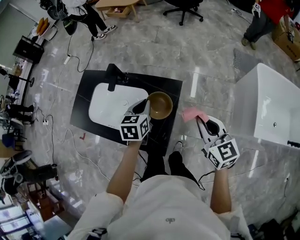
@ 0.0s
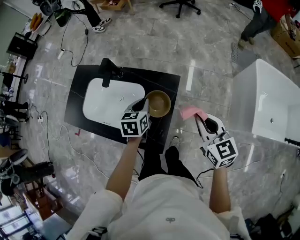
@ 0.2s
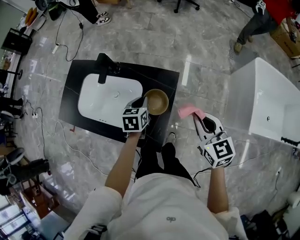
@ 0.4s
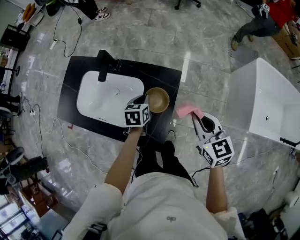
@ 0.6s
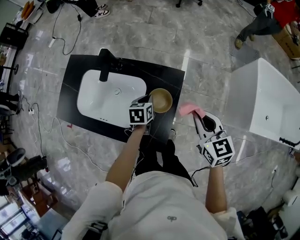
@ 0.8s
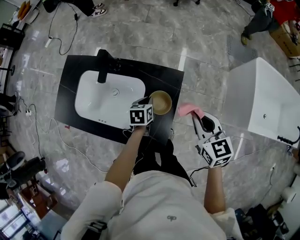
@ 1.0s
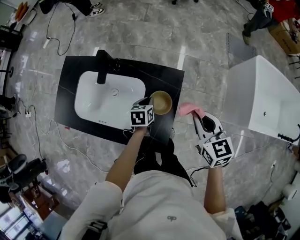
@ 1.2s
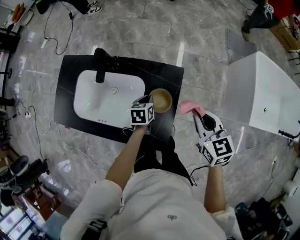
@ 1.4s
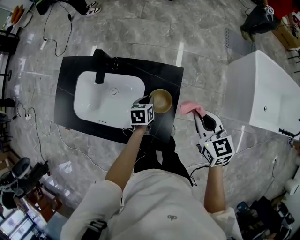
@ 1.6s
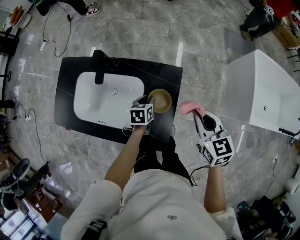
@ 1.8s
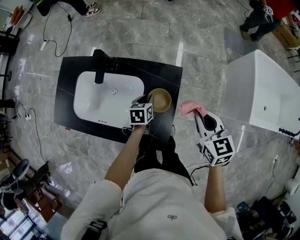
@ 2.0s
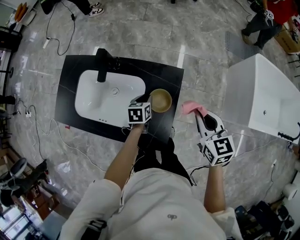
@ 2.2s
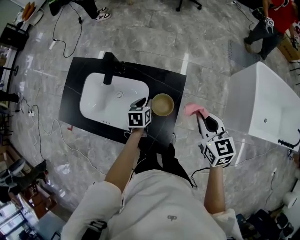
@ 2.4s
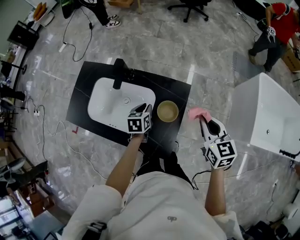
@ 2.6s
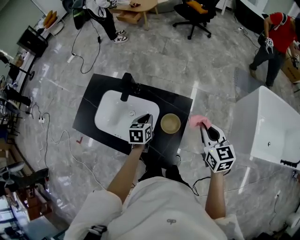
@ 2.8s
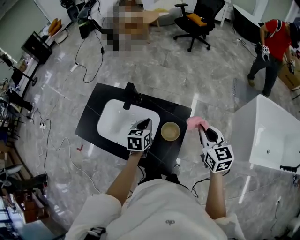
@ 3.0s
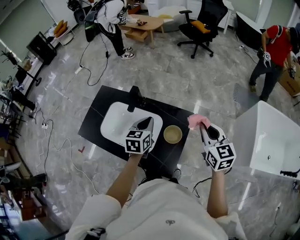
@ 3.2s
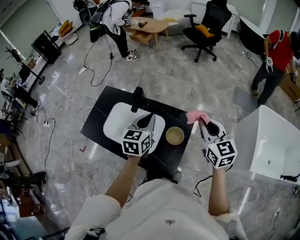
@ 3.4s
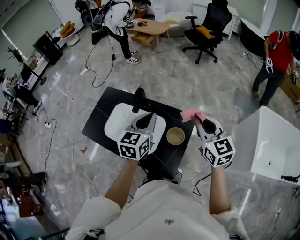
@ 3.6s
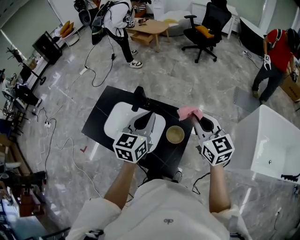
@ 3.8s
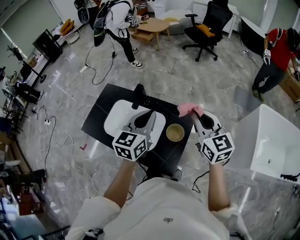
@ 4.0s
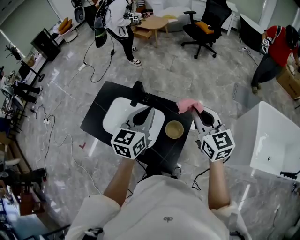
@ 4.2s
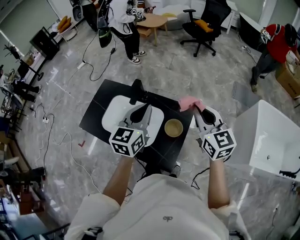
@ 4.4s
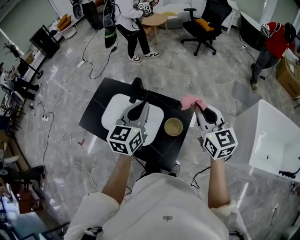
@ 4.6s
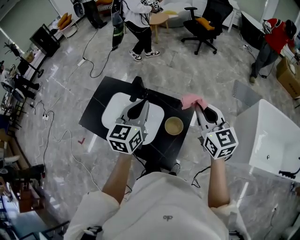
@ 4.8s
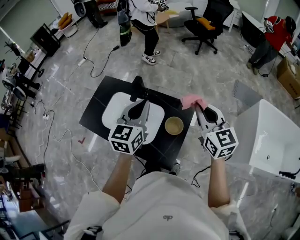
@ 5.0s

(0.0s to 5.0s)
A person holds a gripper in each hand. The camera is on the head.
0.0s - 1.6s: The right gripper heads downward and to the left, covering roughly 10 cm; the left gripper shifts some 20 cm downward, and rotates approximately 20 degrees.
1.6s - 3.4s: The left gripper shifts some 30 cm upward, and swivels some 30 degrees; the right gripper travels upward by approximately 15 cm, and changes its angle by some 20 degrees.
3.4s - 5.0s: The left gripper travels upward by approximately 5 cm.

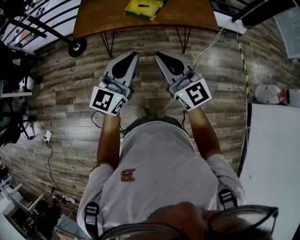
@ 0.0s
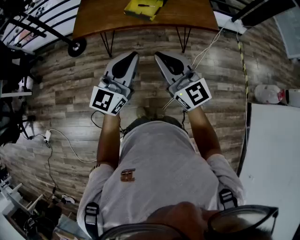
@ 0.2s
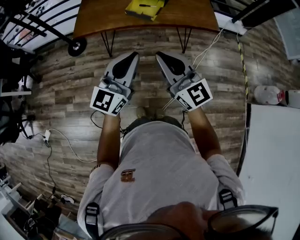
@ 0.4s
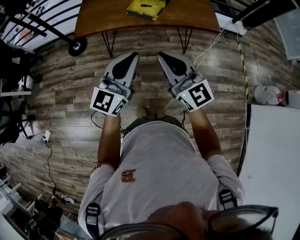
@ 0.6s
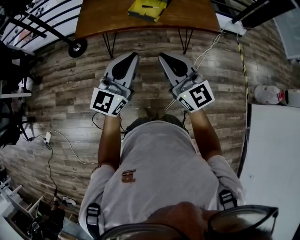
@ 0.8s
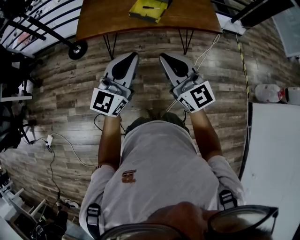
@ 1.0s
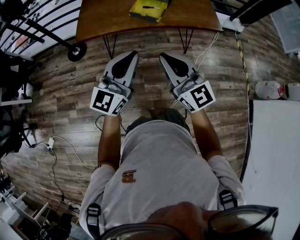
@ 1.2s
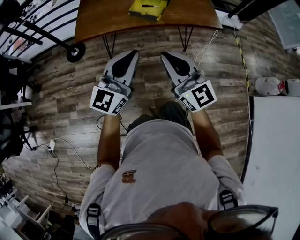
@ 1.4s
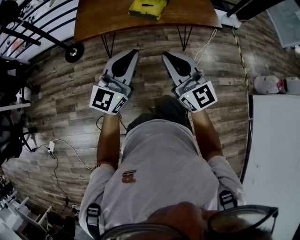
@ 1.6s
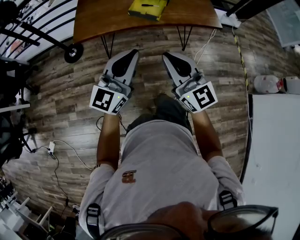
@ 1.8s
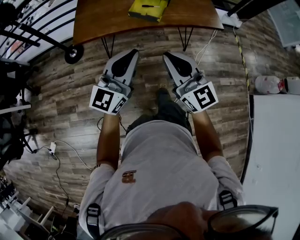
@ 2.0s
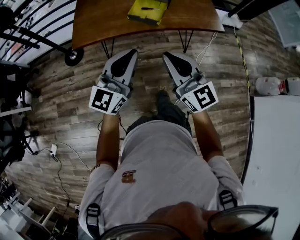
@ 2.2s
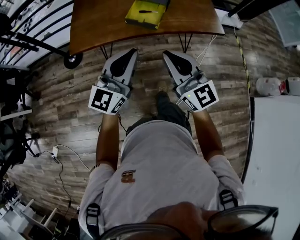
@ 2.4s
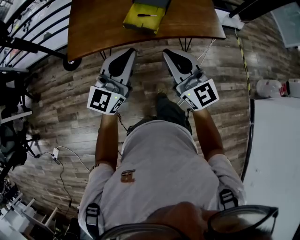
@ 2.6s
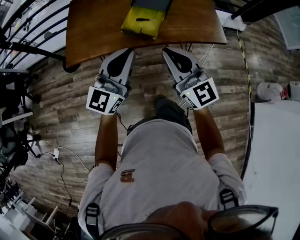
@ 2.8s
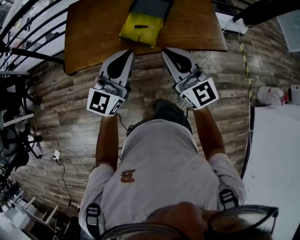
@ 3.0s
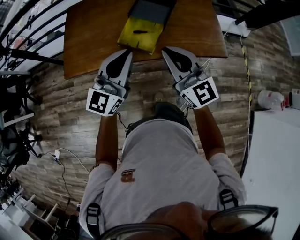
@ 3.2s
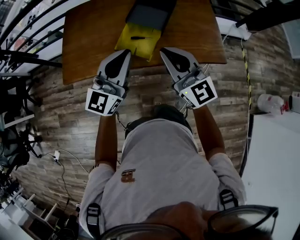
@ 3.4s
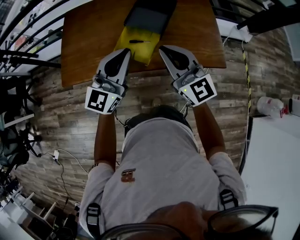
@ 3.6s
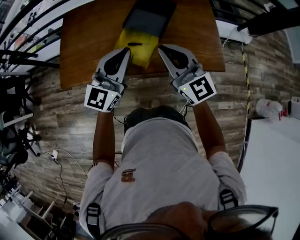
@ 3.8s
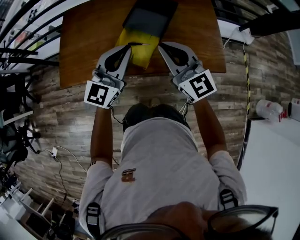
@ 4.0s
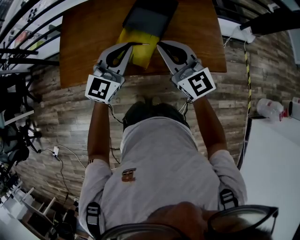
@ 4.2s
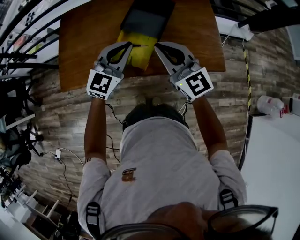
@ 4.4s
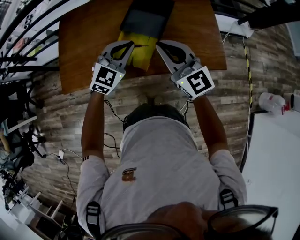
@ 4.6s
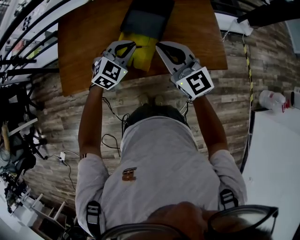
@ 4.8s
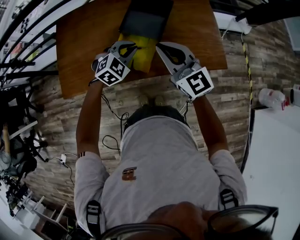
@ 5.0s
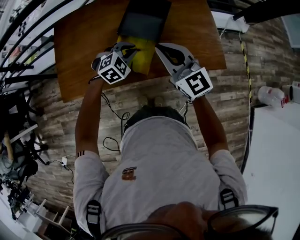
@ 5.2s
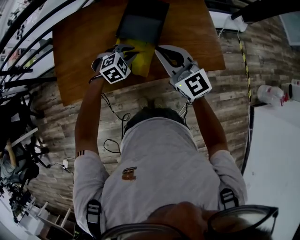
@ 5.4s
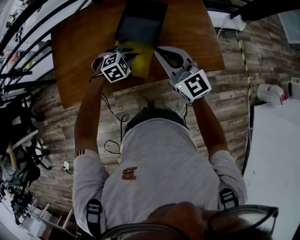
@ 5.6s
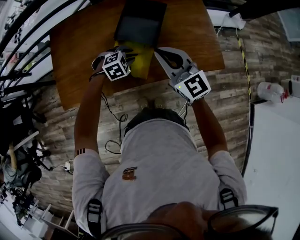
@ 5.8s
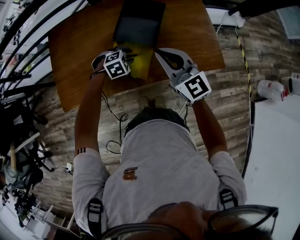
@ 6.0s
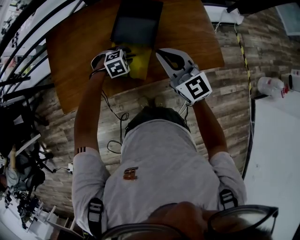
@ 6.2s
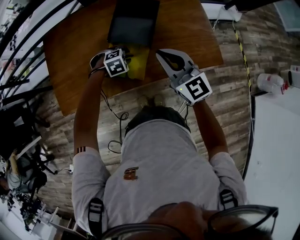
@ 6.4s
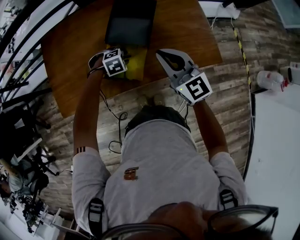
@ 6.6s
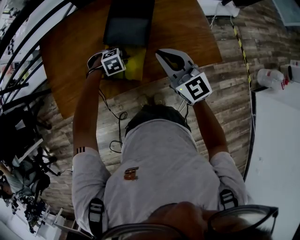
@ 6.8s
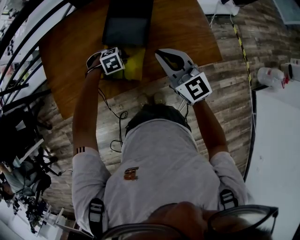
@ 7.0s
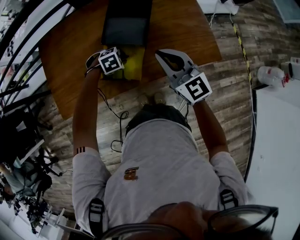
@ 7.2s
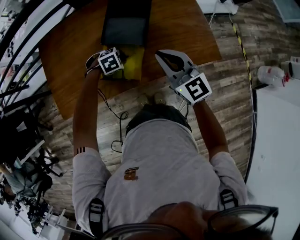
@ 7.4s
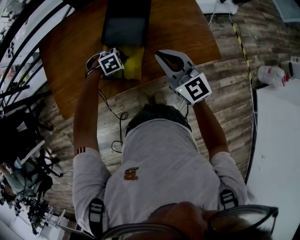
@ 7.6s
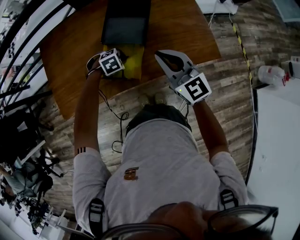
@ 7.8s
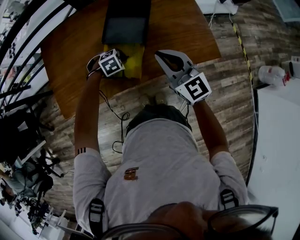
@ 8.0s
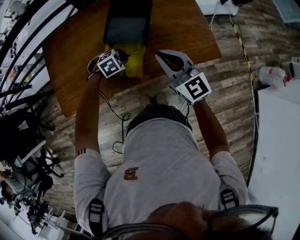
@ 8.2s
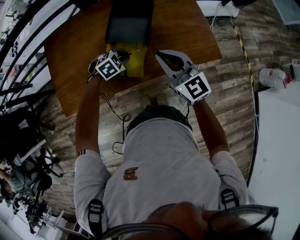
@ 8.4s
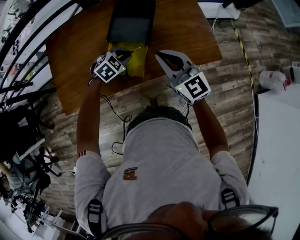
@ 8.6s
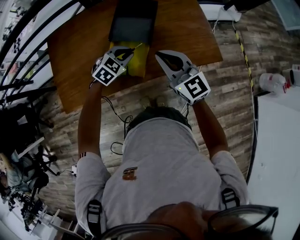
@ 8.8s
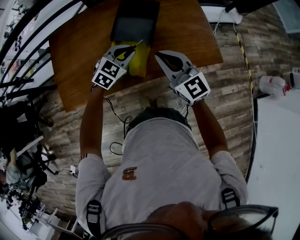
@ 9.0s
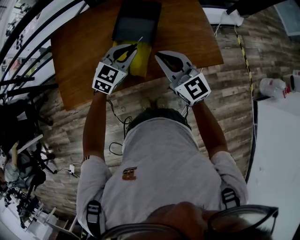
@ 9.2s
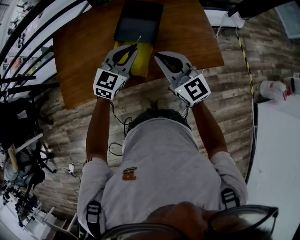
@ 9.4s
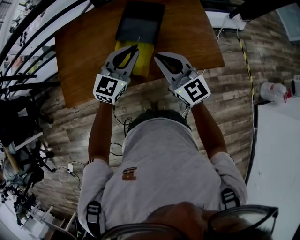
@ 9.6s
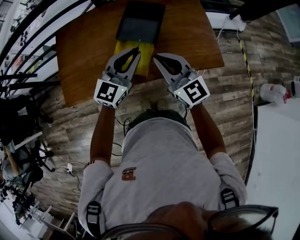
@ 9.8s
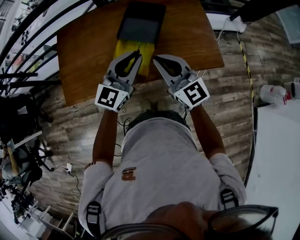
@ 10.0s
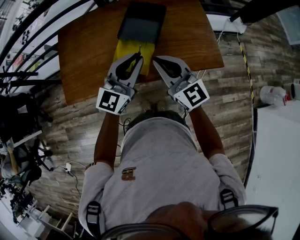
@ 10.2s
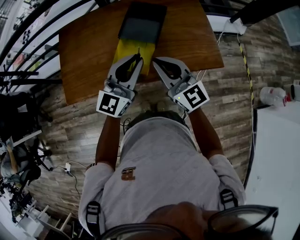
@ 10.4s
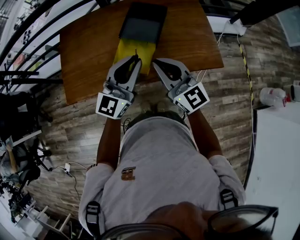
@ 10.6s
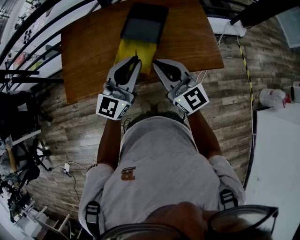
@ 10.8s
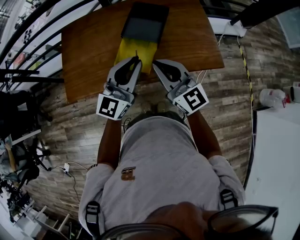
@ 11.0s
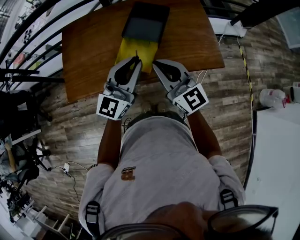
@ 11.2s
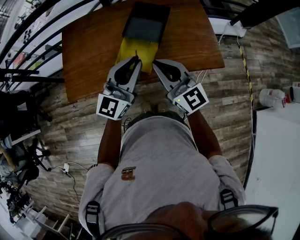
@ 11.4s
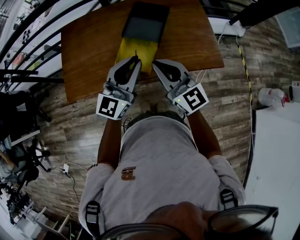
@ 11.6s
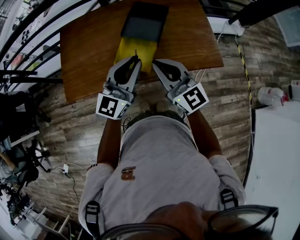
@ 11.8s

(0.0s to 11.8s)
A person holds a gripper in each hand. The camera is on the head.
0.0s - 1.4s: Both grippers move to the left, some 10 cm.
1.4s - 3.0s: The two grippers go approximately 30 cm forward.
3.0s - 4.4s: The grippers both shift forward by roughly 20 cm. The left gripper rotates approximately 30 degrees.
4.4s - 6.0s: The left gripper moves downward, some 20 cm, angles its fingers downward, by some 60 degrees, and opens its fingers. Meanwhile the right gripper goes approximately 5 cm forward.
6.0s - 7.4s: The grippers stay close to where they were, moving slightly.
7.4s - 8.8s: The left gripper shifts roughly 10 cm upward, and swivels approximately 30 degrees.
8.8s - 10.4s: The right gripper moves backward and upward, about 10 cm; the left gripper shifts roughly 25 cm upward and backward, and points its fingers roughly 50 degrees further upward.
10.4s - 11.8s: There are only small adjustments of the grippers.

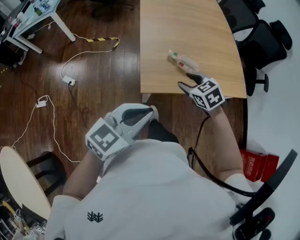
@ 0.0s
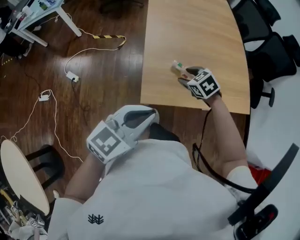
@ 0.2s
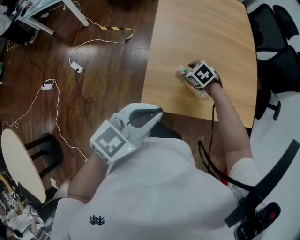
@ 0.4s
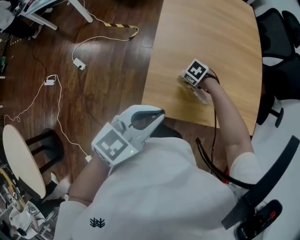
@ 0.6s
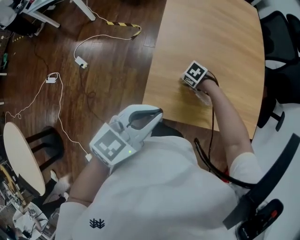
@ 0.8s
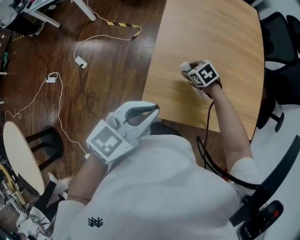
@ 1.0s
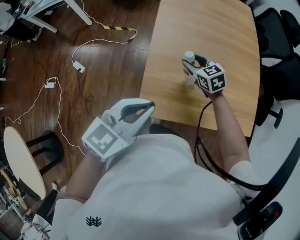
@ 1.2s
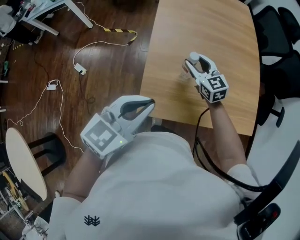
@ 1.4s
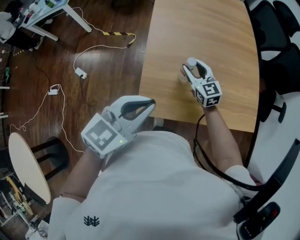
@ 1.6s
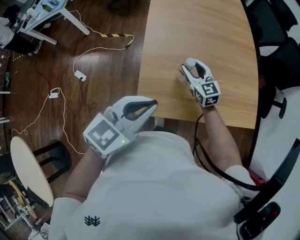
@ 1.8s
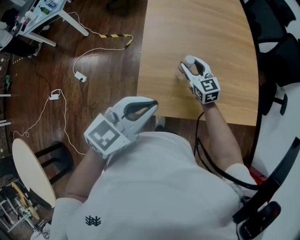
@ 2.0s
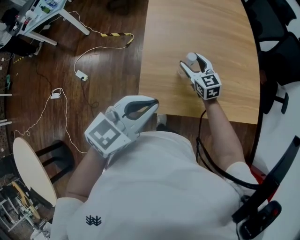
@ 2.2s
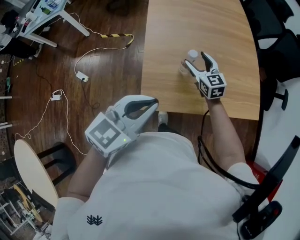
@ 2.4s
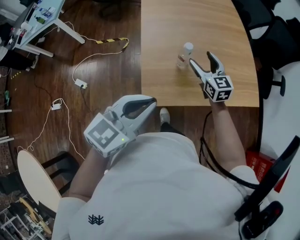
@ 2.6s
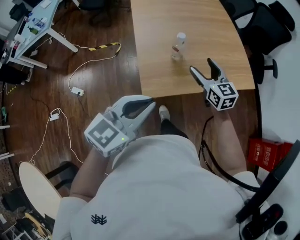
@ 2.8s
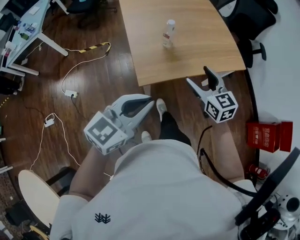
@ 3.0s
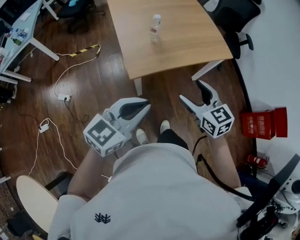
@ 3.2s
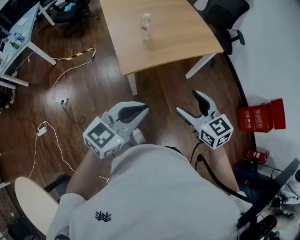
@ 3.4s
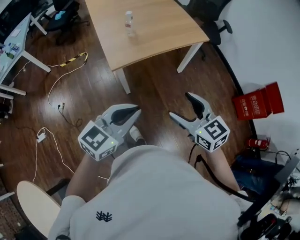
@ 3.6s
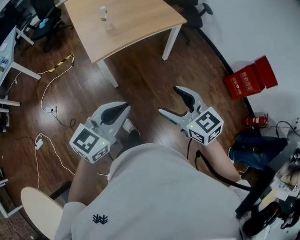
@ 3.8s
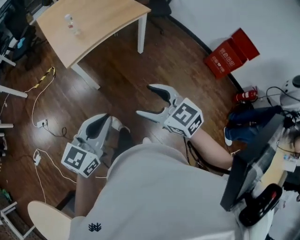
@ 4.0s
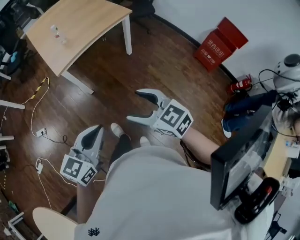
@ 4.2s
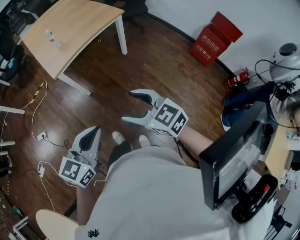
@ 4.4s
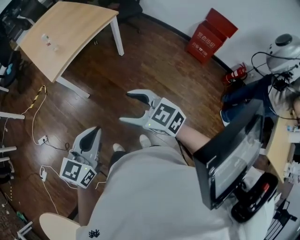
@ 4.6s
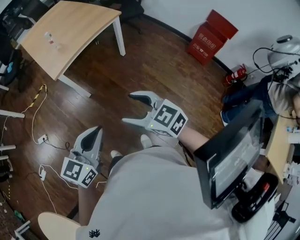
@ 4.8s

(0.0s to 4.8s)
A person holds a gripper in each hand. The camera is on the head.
0.0s - 1.6s: The left gripper ends up about 15 cm from where it was. Meanwhile the right gripper goes downward and returns, some 20 cm each way, and angles its fingers upward, by roughly 30 degrees.
1.6s - 3.2s: The right gripper is displaced backward by about 35 cm, changes its angle by roughly 20 degrees, and opens up, while the left gripper moves backward, approximately 20 cm, and swivels some 20 degrees.
3.2s - 4.8s: The right gripper moves backward, approximately 35 cm; the left gripper is displaced backward and to the right by approximately 35 cm.

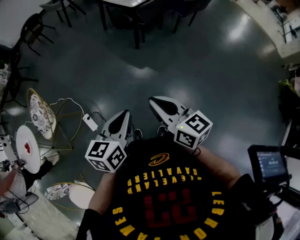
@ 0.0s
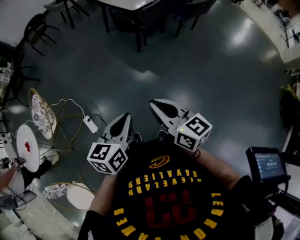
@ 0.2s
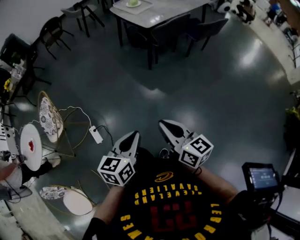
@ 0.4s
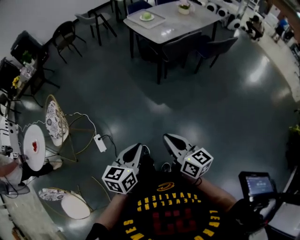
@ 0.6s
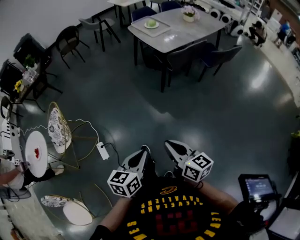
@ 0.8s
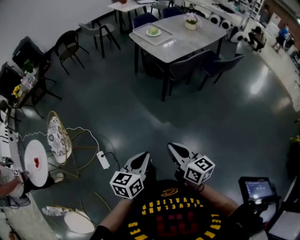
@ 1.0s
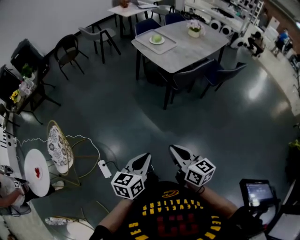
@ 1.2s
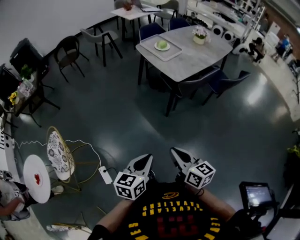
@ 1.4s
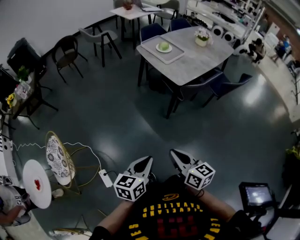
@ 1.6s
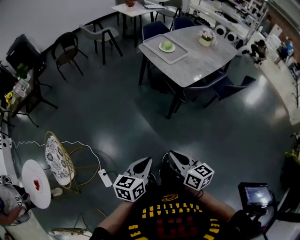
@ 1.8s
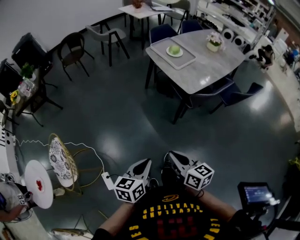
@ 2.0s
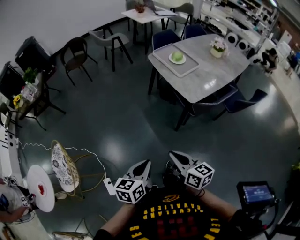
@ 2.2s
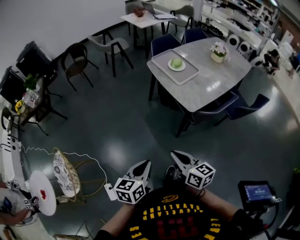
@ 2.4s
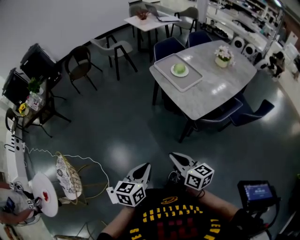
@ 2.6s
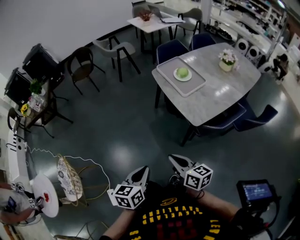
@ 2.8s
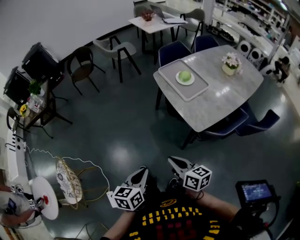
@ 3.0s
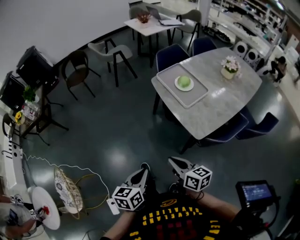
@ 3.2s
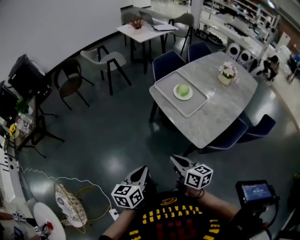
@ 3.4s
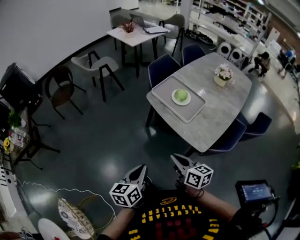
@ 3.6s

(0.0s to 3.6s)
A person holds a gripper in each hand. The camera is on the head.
0.0s - 1.8s: Both grippers move forward, about 35 cm.
1.8s - 3.6s: The pair of grippers is taken forward, approximately 50 cm.
